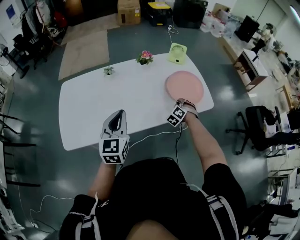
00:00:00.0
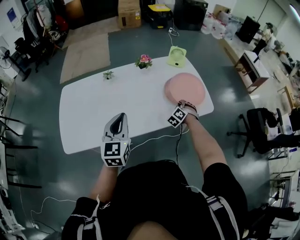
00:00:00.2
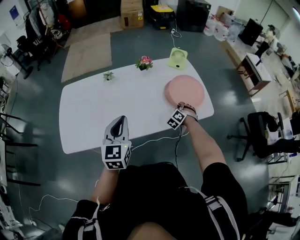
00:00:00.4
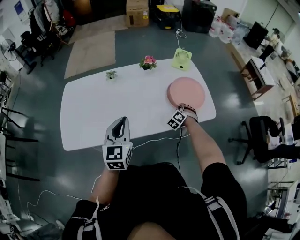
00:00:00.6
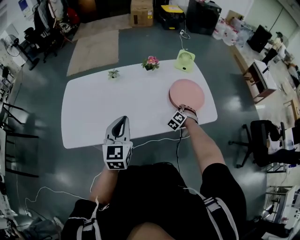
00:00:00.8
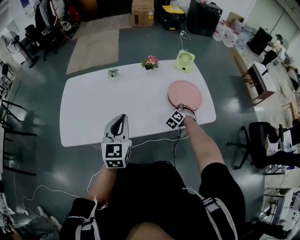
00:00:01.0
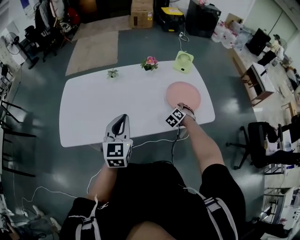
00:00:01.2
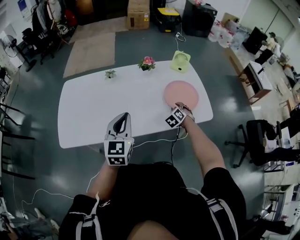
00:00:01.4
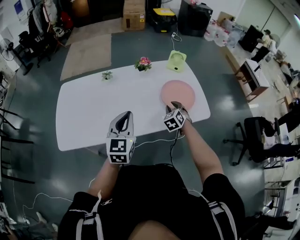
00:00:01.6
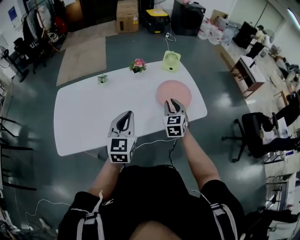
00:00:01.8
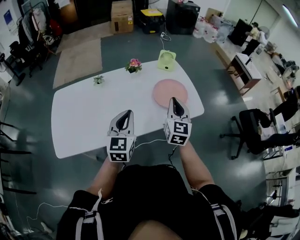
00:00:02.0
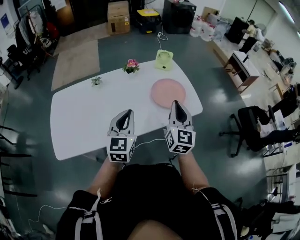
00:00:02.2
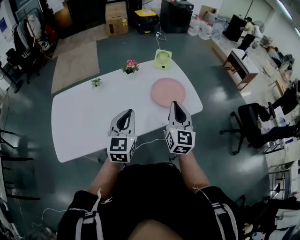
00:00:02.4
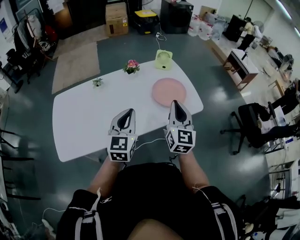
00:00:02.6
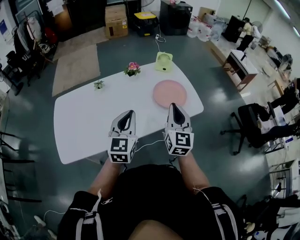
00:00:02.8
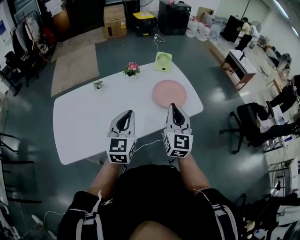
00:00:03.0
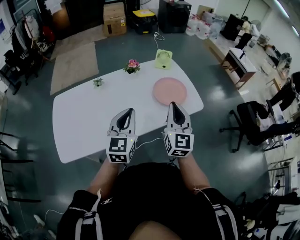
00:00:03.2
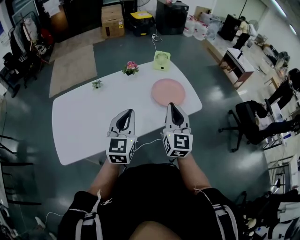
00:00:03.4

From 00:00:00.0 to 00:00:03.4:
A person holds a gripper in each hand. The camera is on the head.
From 00:00:00.0 to 00:00:01.6: The left gripper travels to the right by roughly 5 cm; the right gripper shifts roughly 5 cm upward, rotates about 30 degrees, and opens its fingers.
From 00:00:01.6 to 00:00:03.4: The left gripper heads upward, covering about 5 cm, while the right gripper goes roughly 30 cm upward and backward, tilts its fingers approximately 40 degrees upward, and closes up.

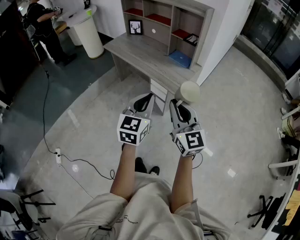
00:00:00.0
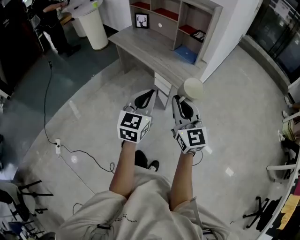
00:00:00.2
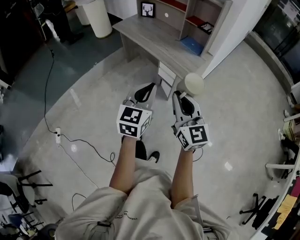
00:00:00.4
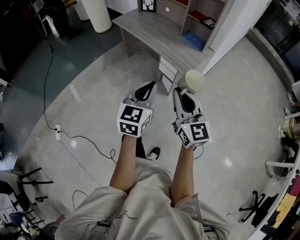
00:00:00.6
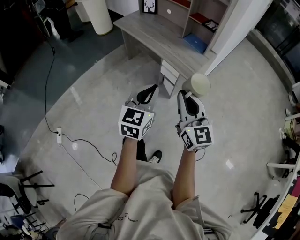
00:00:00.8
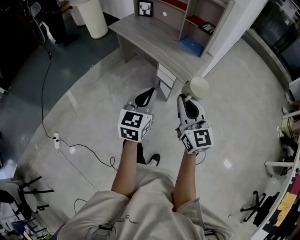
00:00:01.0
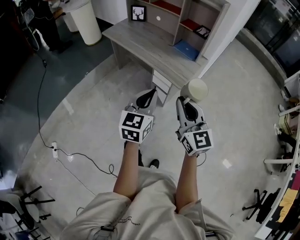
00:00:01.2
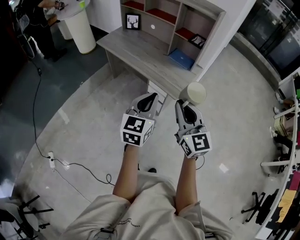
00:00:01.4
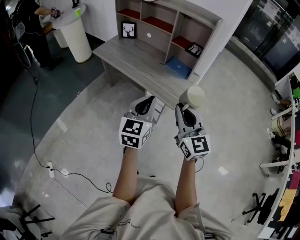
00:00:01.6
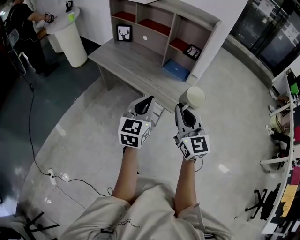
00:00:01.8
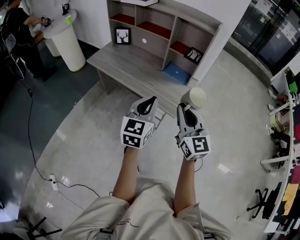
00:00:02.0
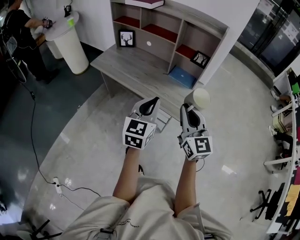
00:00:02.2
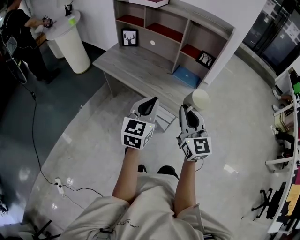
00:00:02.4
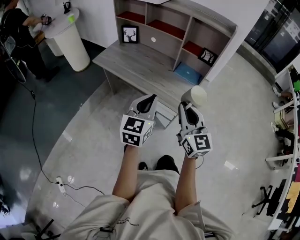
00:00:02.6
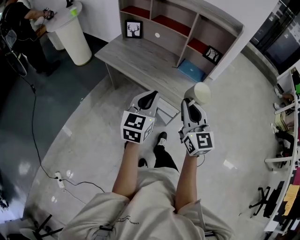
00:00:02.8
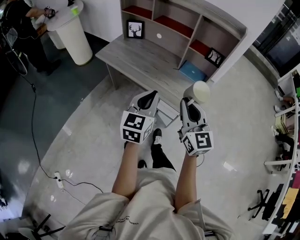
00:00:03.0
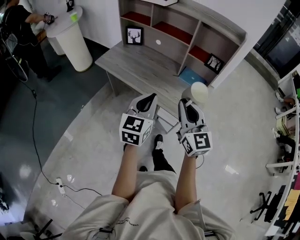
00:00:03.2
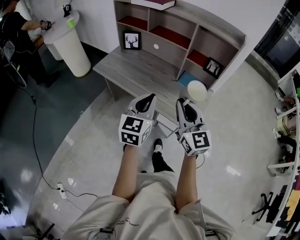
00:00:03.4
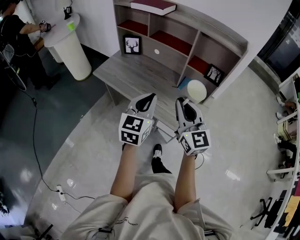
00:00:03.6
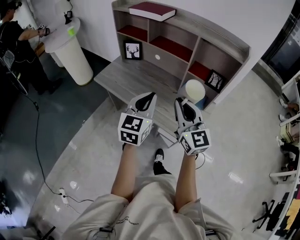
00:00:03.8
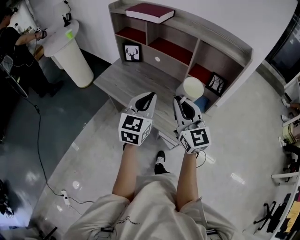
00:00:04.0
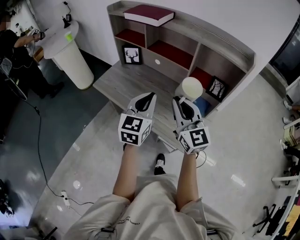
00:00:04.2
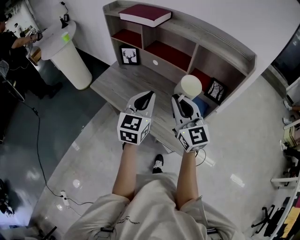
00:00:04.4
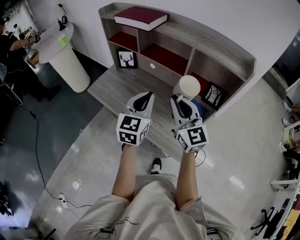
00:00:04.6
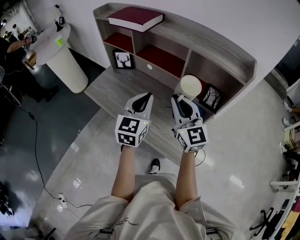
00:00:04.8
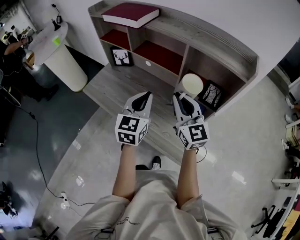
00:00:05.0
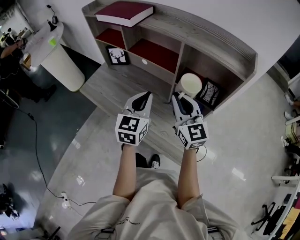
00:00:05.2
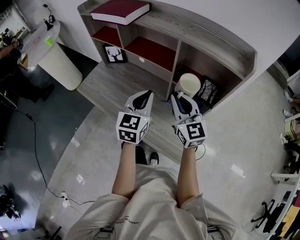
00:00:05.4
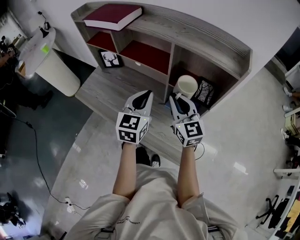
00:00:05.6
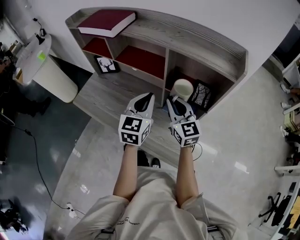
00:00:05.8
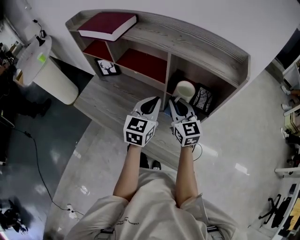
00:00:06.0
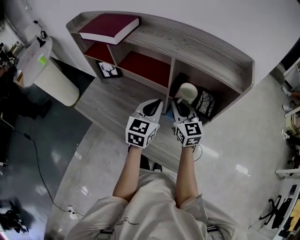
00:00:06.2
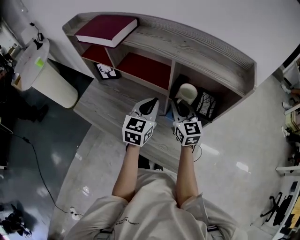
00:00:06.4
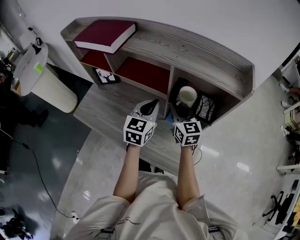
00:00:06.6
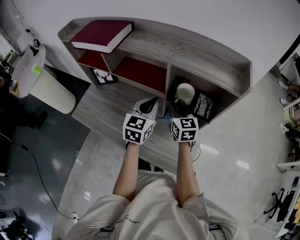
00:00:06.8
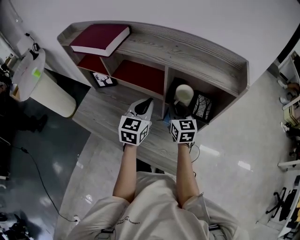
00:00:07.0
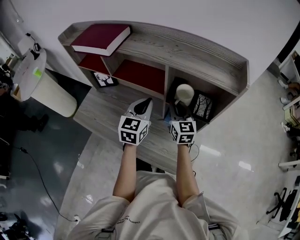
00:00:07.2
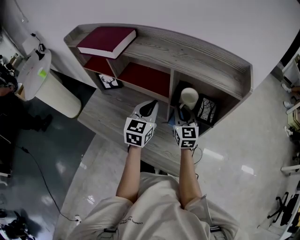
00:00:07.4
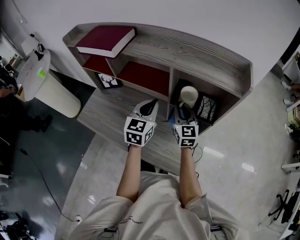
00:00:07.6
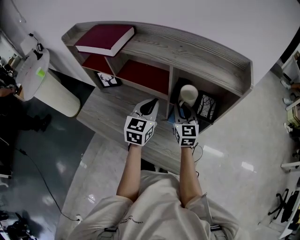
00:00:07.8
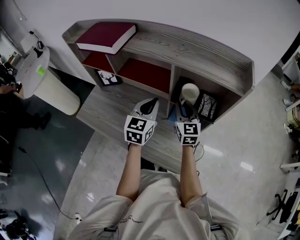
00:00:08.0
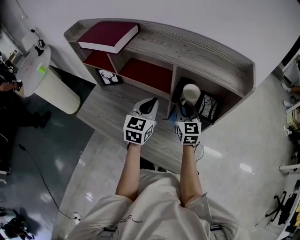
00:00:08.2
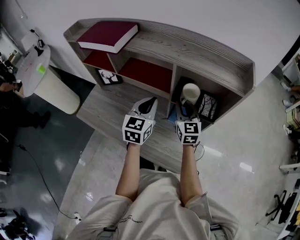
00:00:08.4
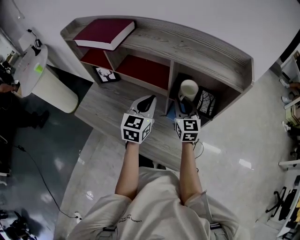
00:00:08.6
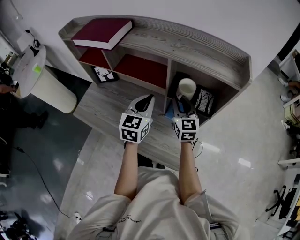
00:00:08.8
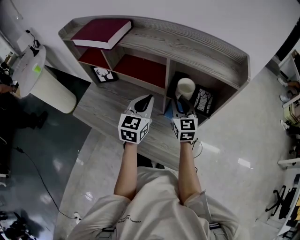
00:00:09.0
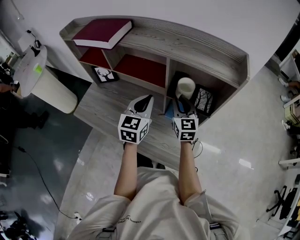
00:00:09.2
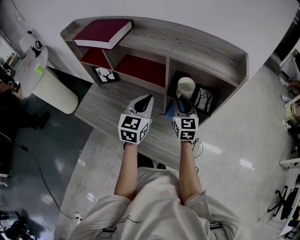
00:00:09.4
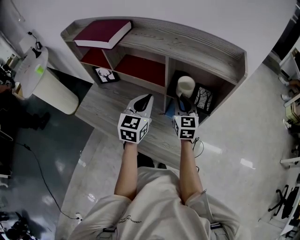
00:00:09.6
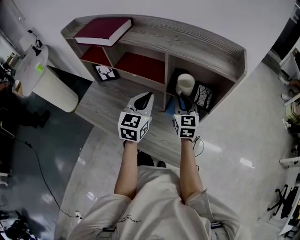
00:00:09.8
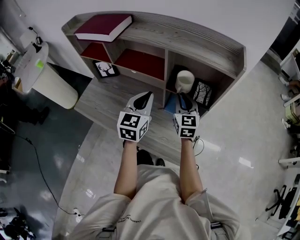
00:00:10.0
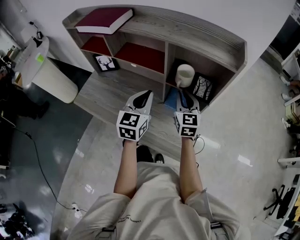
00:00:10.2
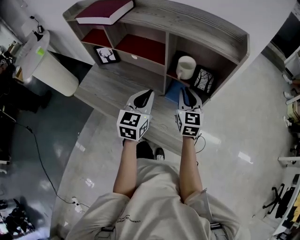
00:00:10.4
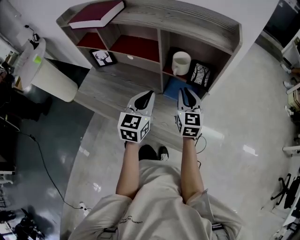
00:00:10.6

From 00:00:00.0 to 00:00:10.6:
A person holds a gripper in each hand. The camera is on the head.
From 00:00:00.0 to 00:00:01.6: The grippers both shift forward by about 15 cm.
From 00:00:01.6 to 00:00:03.0: The two grippers go approximately 20 cm forward and to the left.
From 00:00:03.0 to 00:00:04.6: The two grippers go approximately 25 cm forward.
From 00:00:04.6 to 00:00:06.0: The right gripper goes roughly 20 cm forward, downward and to the right. The left gripper is displaced to the right, forward and downward by roughly 15 cm.
From 00:00:06.0 to 00:00:07.6: The two grippers go approximately 5 cm forward.
From 00:00:07.6 to 00:00:09.0: The grippers make only small movements.
From 00:00:09.0 to 00:00:10.6: The left gripper goes roughly 10 cm backward. Meanwhile the right gripper moves backward and to the right, some 10 cm.

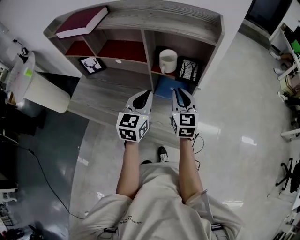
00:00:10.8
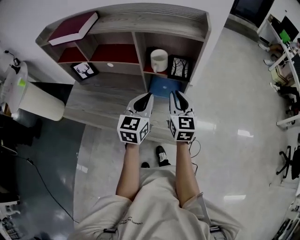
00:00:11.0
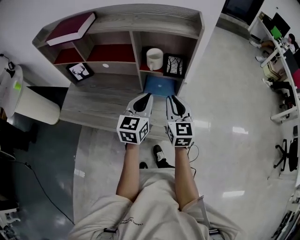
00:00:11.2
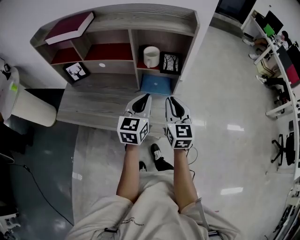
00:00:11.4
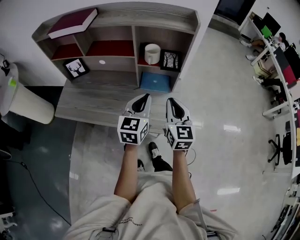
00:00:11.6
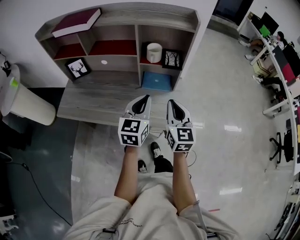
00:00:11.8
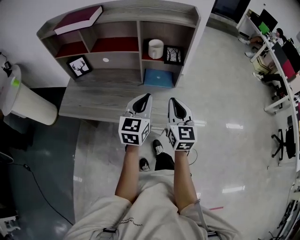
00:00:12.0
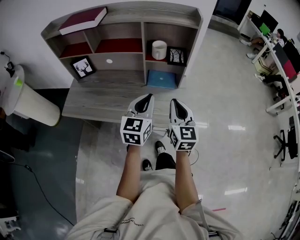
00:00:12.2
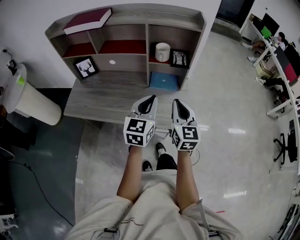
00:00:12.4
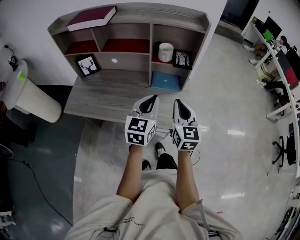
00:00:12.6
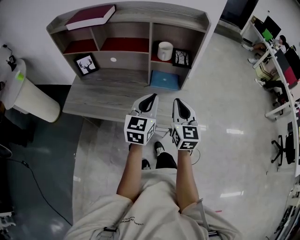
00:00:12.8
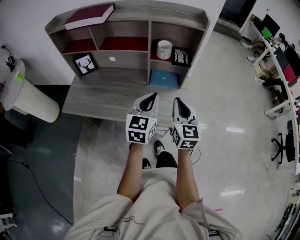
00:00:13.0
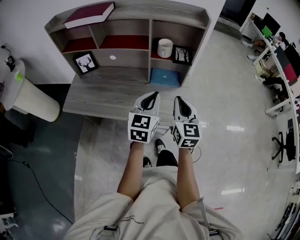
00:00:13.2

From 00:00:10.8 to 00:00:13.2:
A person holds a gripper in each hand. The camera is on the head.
From 00:00:10.8 to 00:00:12.0: Both grippers travel together backward, approximately 15 cm.
From 00:00:12.0 to 00:00:13.2: There are only small adjustments of the grippers.

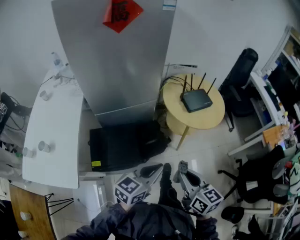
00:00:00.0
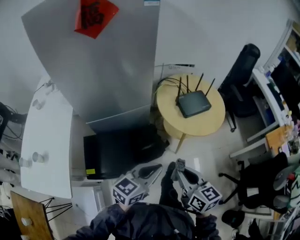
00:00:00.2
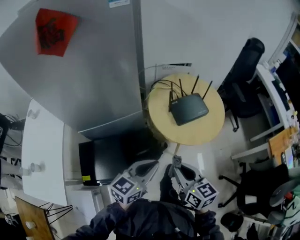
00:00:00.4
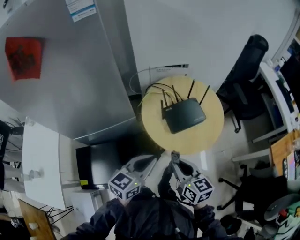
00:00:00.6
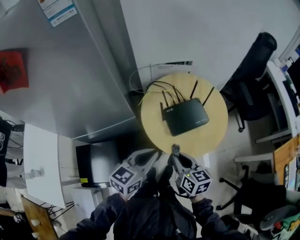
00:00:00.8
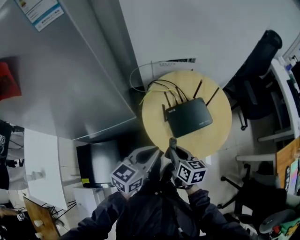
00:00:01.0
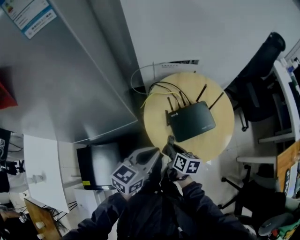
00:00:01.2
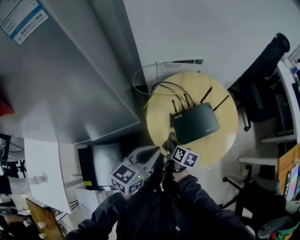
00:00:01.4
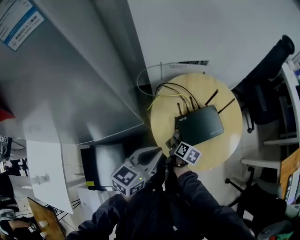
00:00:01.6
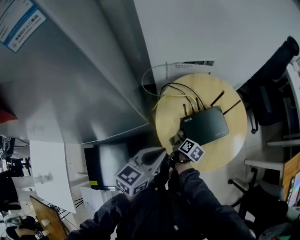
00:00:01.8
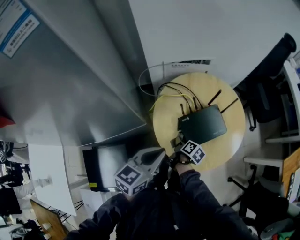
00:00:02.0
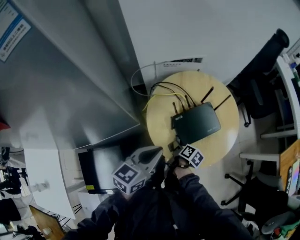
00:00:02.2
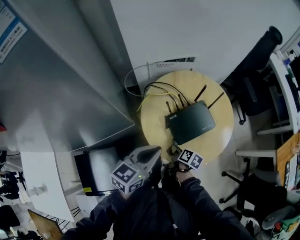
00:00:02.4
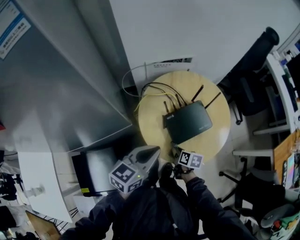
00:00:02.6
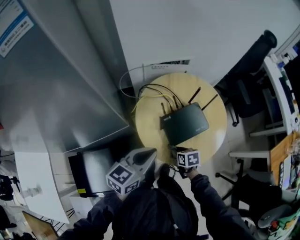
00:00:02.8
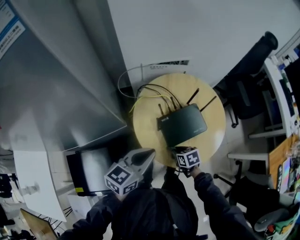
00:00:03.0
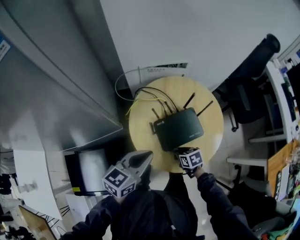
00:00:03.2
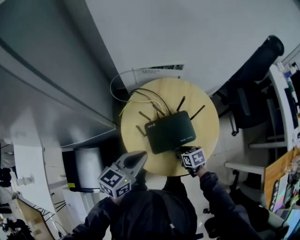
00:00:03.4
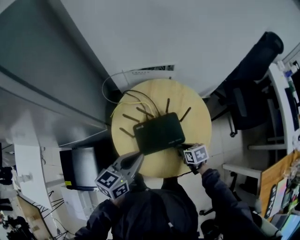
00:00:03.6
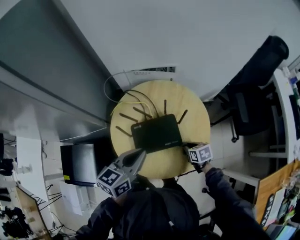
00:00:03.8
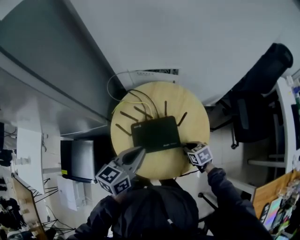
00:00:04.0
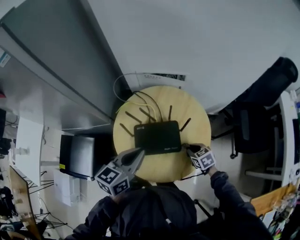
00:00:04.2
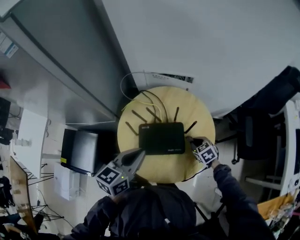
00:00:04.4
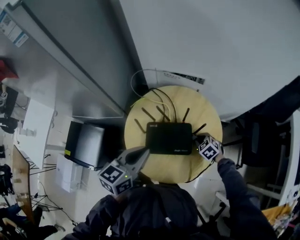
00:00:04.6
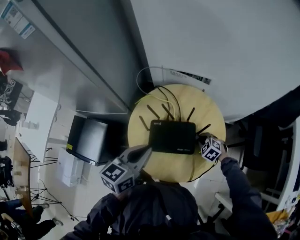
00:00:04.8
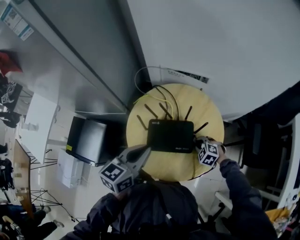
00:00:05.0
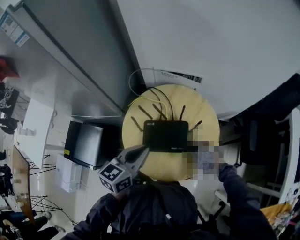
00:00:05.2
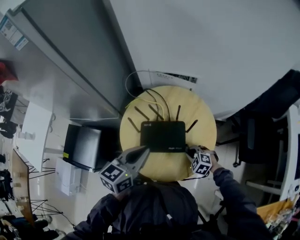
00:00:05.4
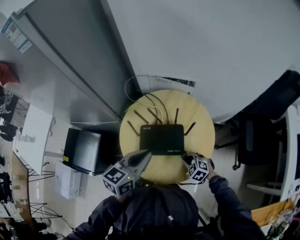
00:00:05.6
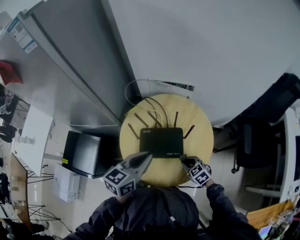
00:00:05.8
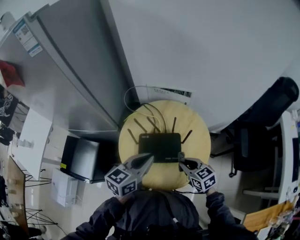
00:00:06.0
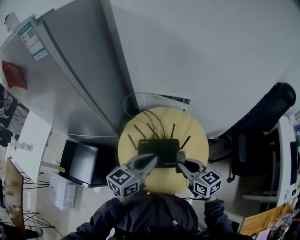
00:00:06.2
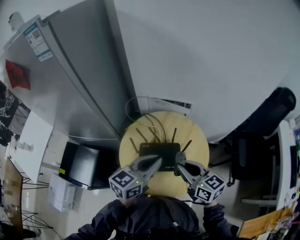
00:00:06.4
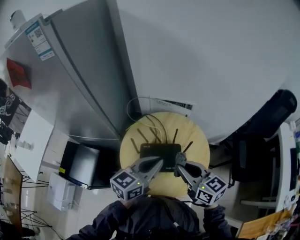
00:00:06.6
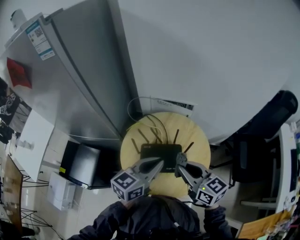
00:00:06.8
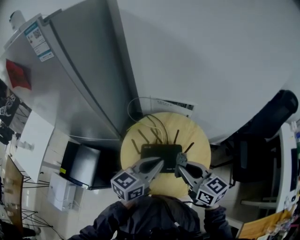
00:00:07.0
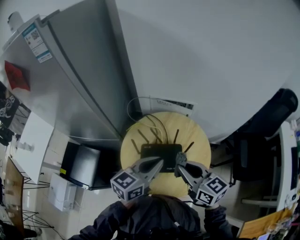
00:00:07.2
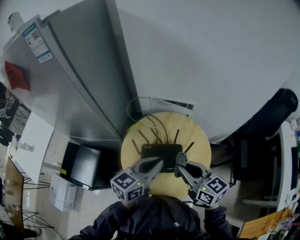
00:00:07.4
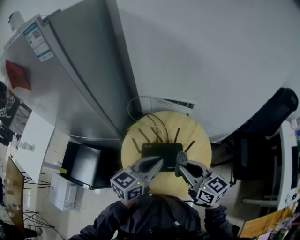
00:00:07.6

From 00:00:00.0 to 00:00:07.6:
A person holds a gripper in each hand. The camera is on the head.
From 00:00:00.0 to 00:00:01.6: Both grippers are carried forward, some 50 cm. The right gripper goes roughly 30 cm downward, and twists roughly 40 degrees clockwise, seen from behind.
From 00:00:01.6 to 00:00:03.0: The right gripper goes about 10 cm to the right, and rotates around the line of its fingers by approximately 40 degrees, counterclockwise from behind.
From 00:00:03.0 to 00:00:04.6: The right gripper travels to the right and forward by roughly 30 cm, and twists about 60 degrees counterclockwise, seen from behind; the left gripper travels to the right by roughly 15 cm, and swivels approximately 30 degrees.
From 00:00:04.6 to 00:00:06.0: The right gripper shifts some 20 cm upward and backward, and rotates some 40 degrees. The left gripper changes place by some 5 cm.
From 00:00:06.0 to 00:00:07.6: The left gripper shifts by roughly 5 cm, while the right gripper shifts roughly 20 cm upward, and rotates about 20 degrees.
